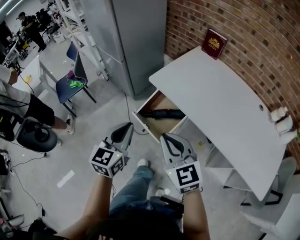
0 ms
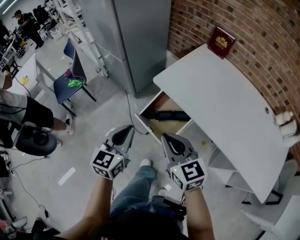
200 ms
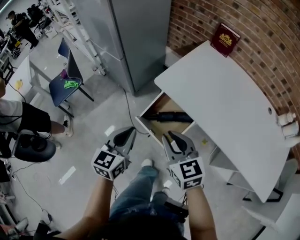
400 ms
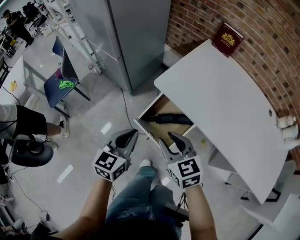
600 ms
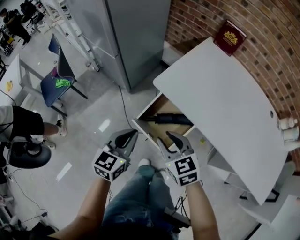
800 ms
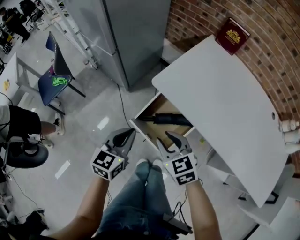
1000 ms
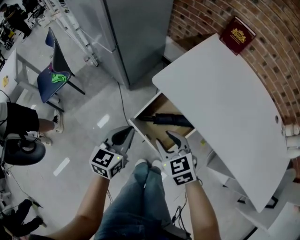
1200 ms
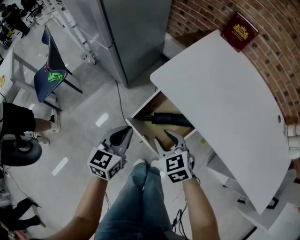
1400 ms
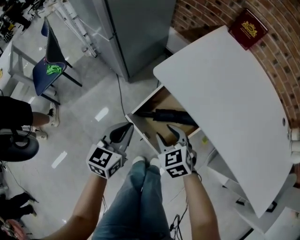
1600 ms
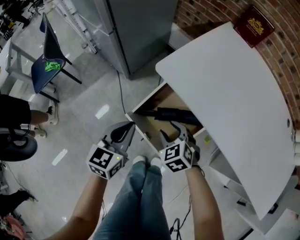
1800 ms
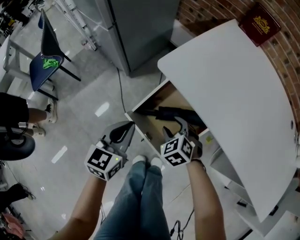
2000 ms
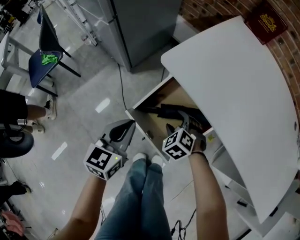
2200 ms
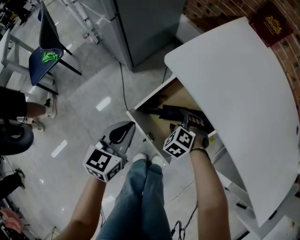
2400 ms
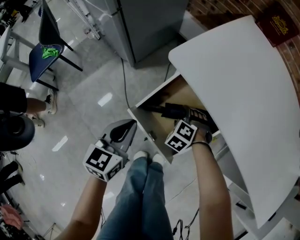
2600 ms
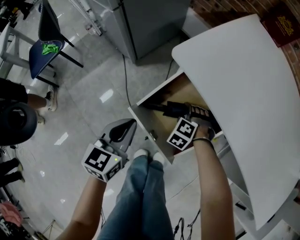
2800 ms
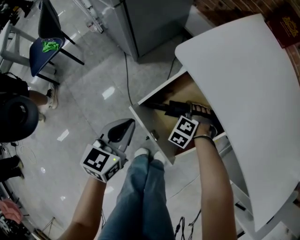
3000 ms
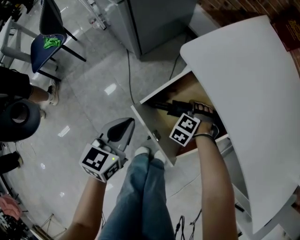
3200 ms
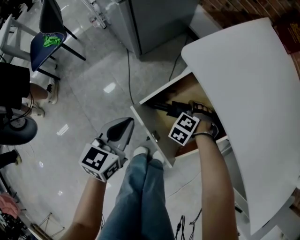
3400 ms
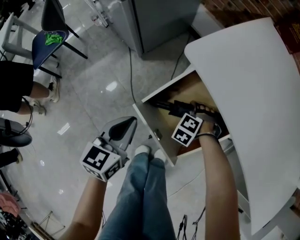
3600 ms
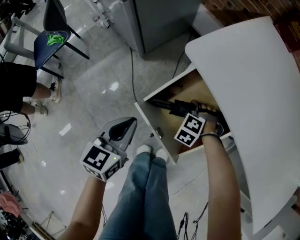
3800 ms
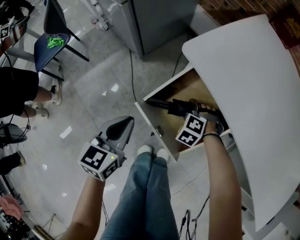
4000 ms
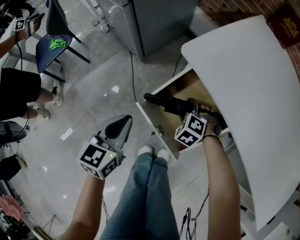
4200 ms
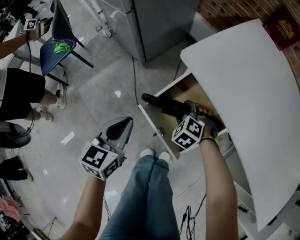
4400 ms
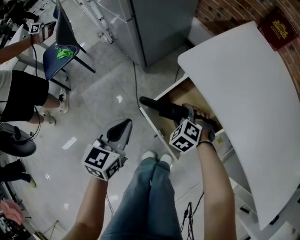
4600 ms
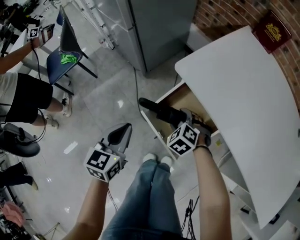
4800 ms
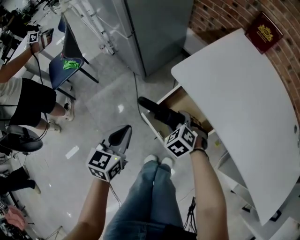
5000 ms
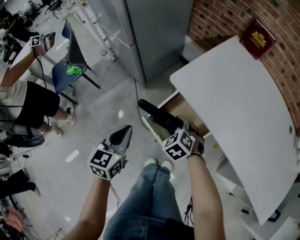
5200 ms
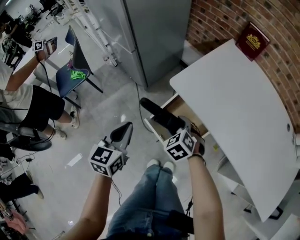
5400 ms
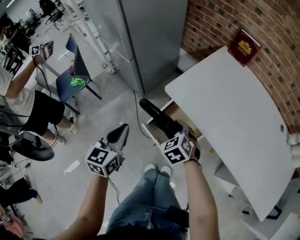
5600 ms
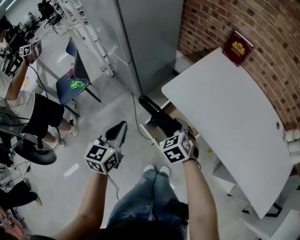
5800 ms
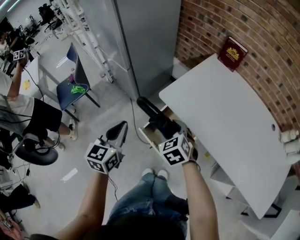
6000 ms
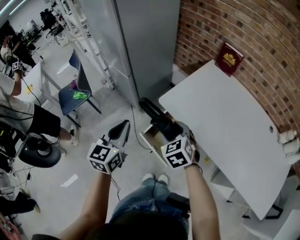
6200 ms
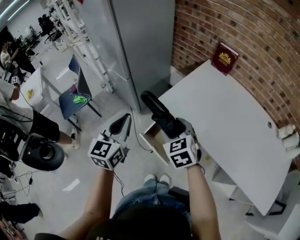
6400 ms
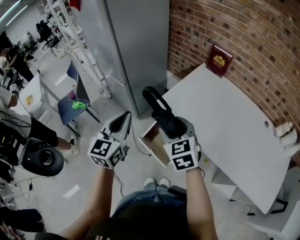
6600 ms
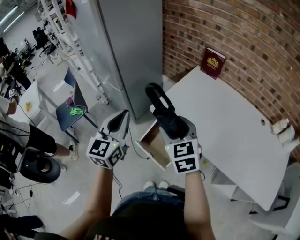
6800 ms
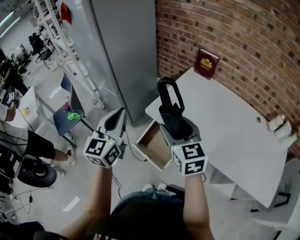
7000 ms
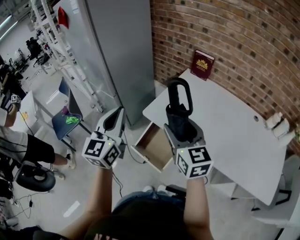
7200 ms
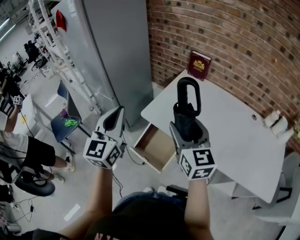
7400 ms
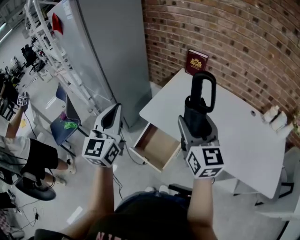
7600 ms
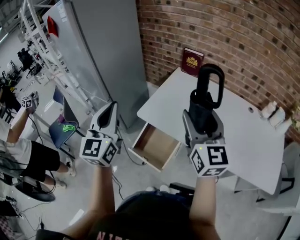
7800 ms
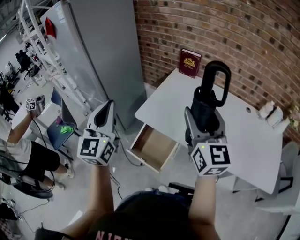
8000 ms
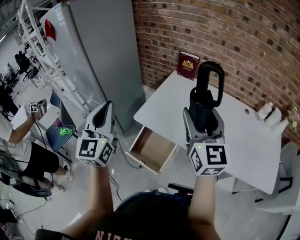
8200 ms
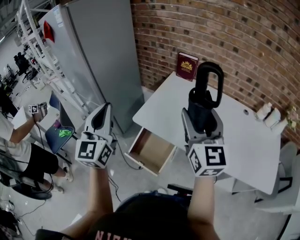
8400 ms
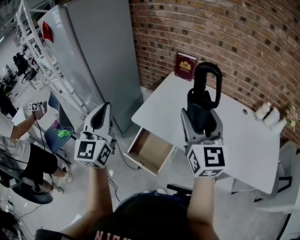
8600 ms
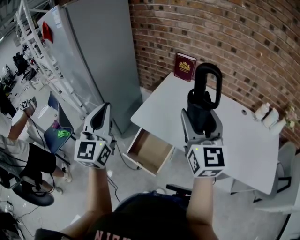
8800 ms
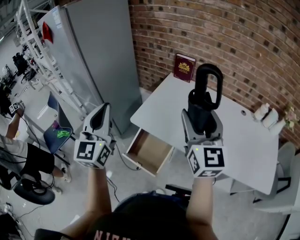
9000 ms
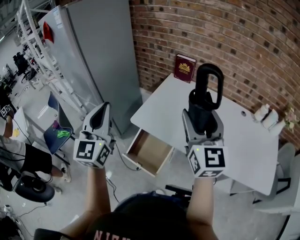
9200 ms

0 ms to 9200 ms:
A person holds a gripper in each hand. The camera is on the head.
0 ms to 1600 ms: The grippers both shift downward and forward by some 35 cm. The right gripper changes its angle by about 30 degrees, and opens its fingers.
1600 ms to 3000 ms: The left gripper is displaced downward by approximately 10 cm, while the right gripper shifts roughly 25 cm downward and forward, changes its angle by approximately 50 degrees, and opens.
3000 ms to 4600 ms: The left gripper moves upward, some 5 cm; the right gripper shifts approximately 10 cm upward, and turns by some 20 degrees.
4600 ms to 6200 ms: Both grippers move upward, approximately 30 cm. The right gripper rotates about 30 degrees.
6200 ms to 7600 ms: The left gripper travels upward and to the right by about 20 cm, and swivels some 20 degrees, while the right gripper heads upward and to the right, covering about 30 cm, and tilts its fingers approximately 40 degrees upward.
7600 ms to 9200 ms: The right gripper heads upward, covering about 5 cm.

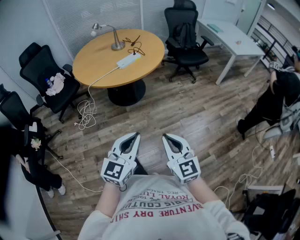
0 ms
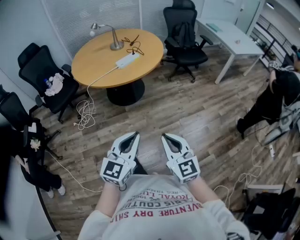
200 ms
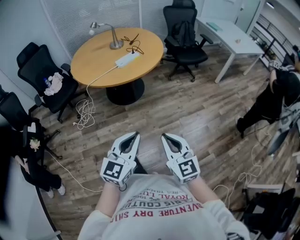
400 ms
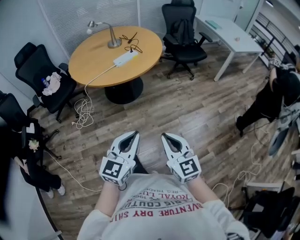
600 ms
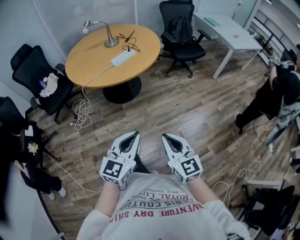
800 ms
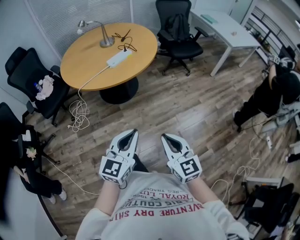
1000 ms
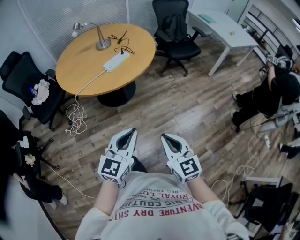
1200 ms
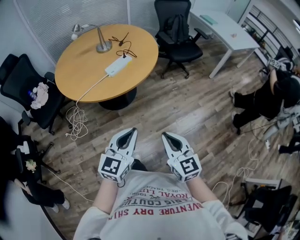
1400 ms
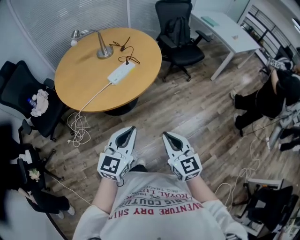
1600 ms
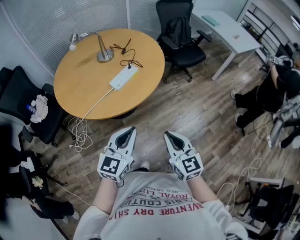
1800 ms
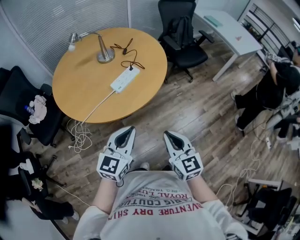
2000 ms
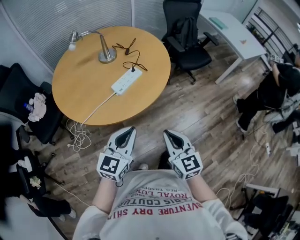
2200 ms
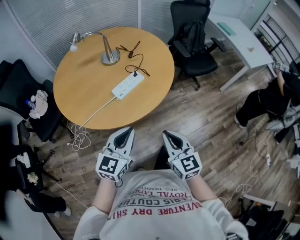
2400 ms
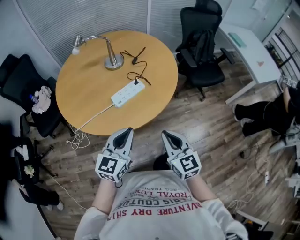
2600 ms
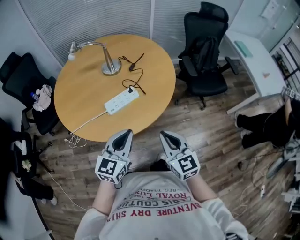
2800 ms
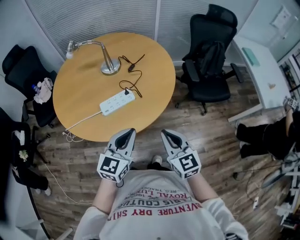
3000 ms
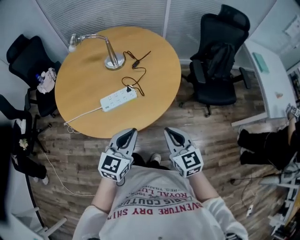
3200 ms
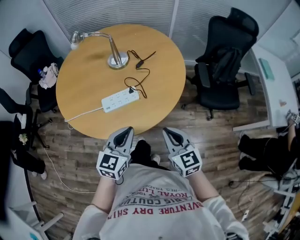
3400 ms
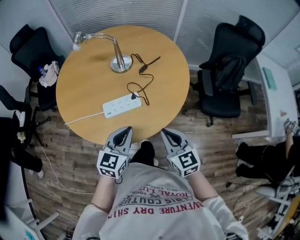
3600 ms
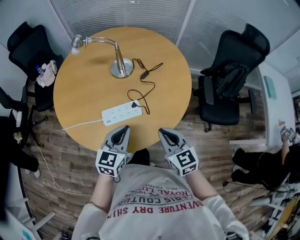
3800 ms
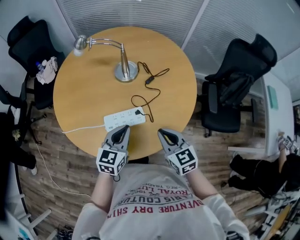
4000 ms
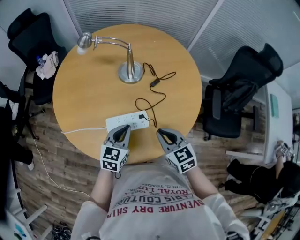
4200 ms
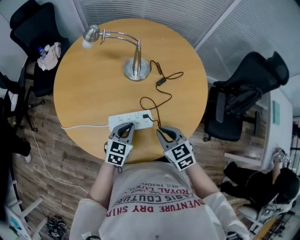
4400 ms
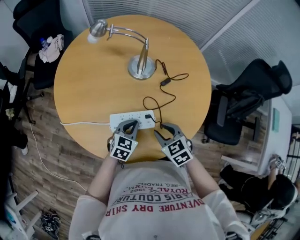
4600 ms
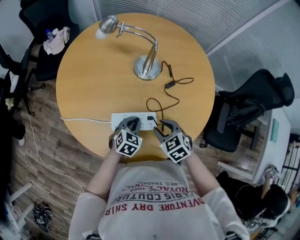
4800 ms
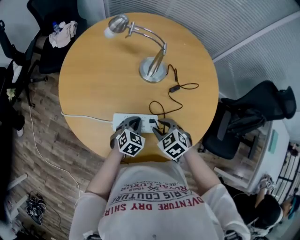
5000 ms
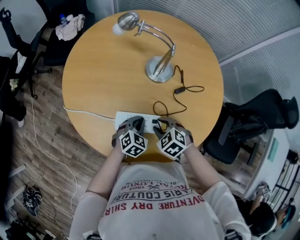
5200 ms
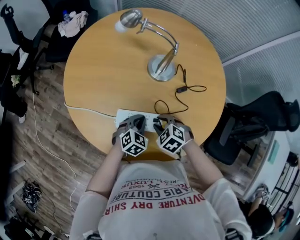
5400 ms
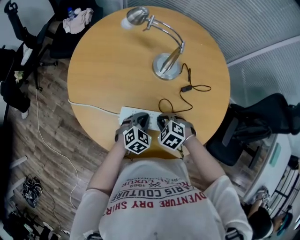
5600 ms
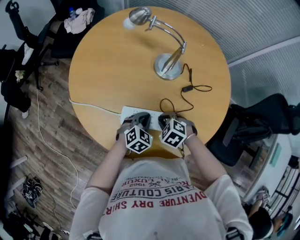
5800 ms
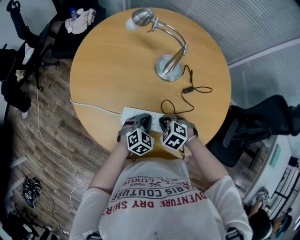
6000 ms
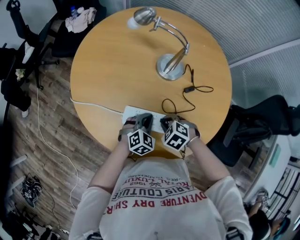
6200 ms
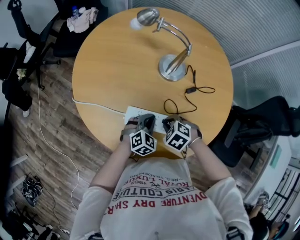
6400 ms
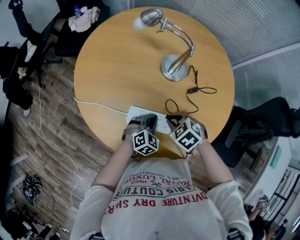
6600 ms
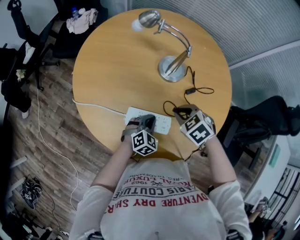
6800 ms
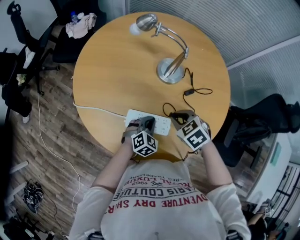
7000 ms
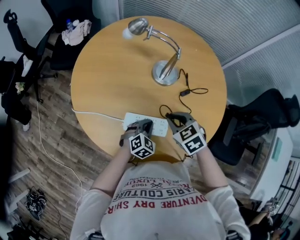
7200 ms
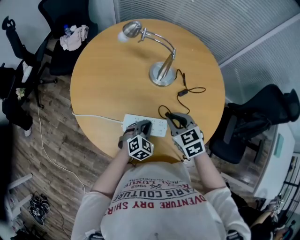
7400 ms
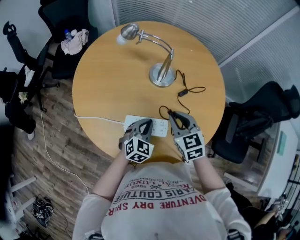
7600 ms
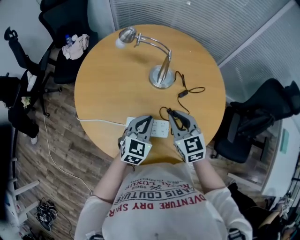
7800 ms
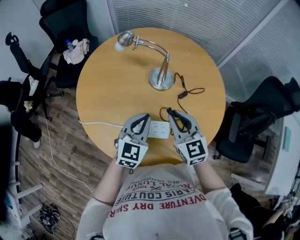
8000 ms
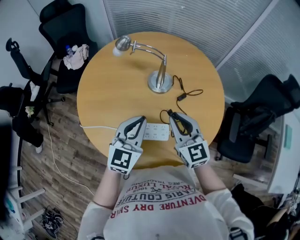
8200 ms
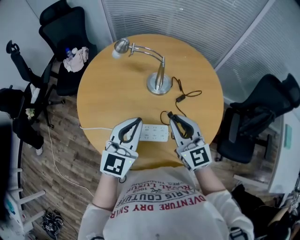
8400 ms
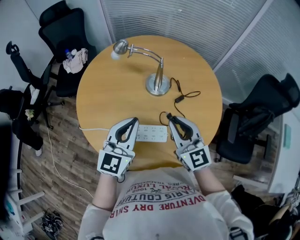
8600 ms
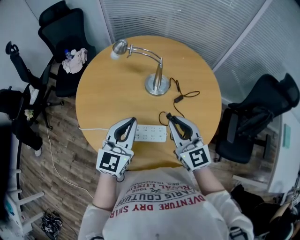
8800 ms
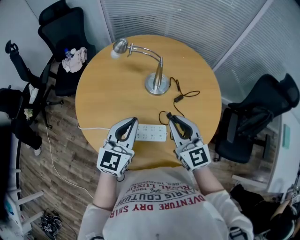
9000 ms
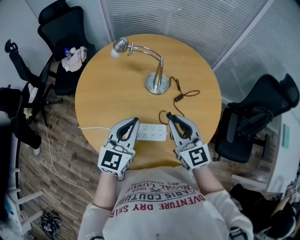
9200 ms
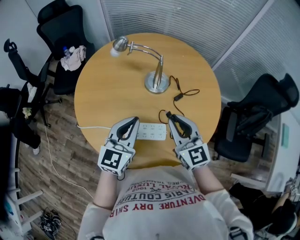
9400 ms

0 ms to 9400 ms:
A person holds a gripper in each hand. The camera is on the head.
0 ms to 1600 ms: Both grippers travel together forward, some 25 cm.
1600 ms to 3200 ms: The right gripper shifts by approximately 40 cm, and turns by some 30 degrees; the left gripper shifts by roughly 35 cm, and rotates some 30 degrees.
3200 ms to 4800 ms: Both grippers travel together forward and downward, some 30 cm. The left gripper rotates roughly 30 degrees; the right gripper angles its fingers downward, by roughly 30 degrees, and opens its fingers.
4800 ms to 6200 ms: The right gripper moves downward, about 5 cm, changes its angle by about 40 degrees, and closes its fingers.
6200 ms to 7800 ms: The grippers both shift upward by approximately 15 cm. The right gripper tips its fingers upward by roughly 50 degrees. The left gripper changes its angle by about 20 degrees.
7800 ms to 9400 ms: The left gripper travels upward by some 10 cm. The right gripper is displaced upward by roughly 5 cm.

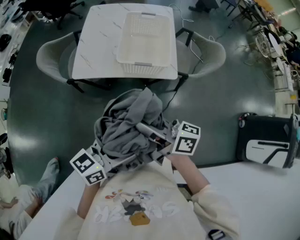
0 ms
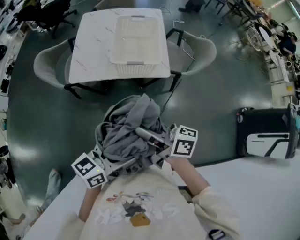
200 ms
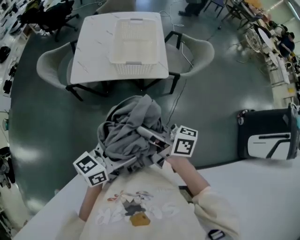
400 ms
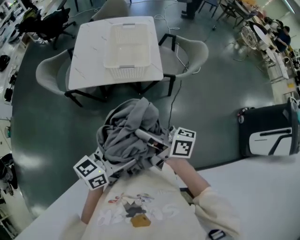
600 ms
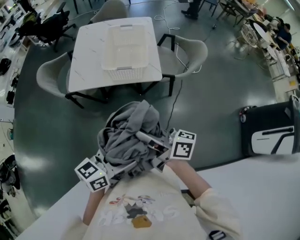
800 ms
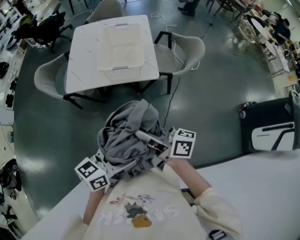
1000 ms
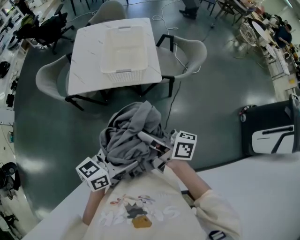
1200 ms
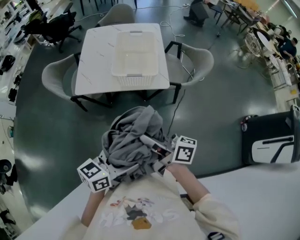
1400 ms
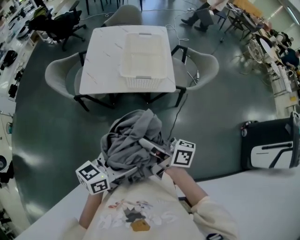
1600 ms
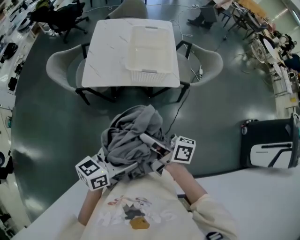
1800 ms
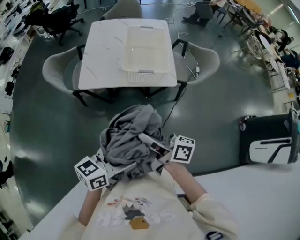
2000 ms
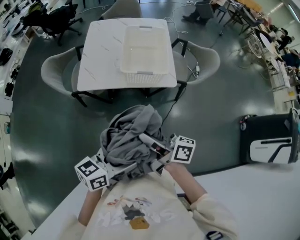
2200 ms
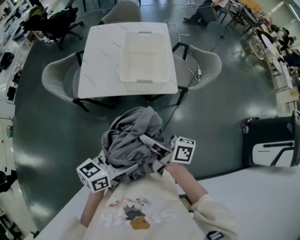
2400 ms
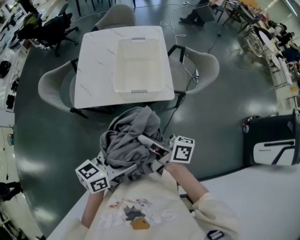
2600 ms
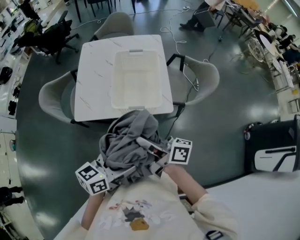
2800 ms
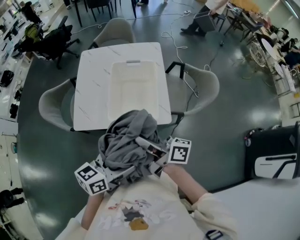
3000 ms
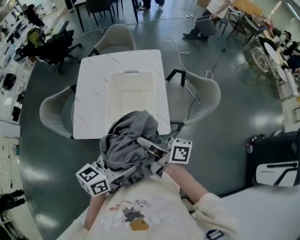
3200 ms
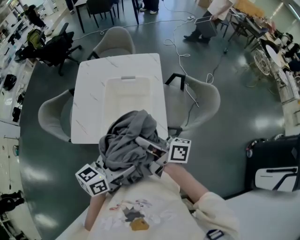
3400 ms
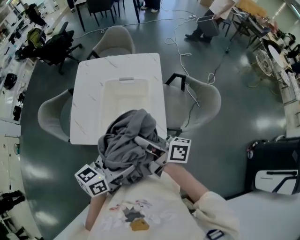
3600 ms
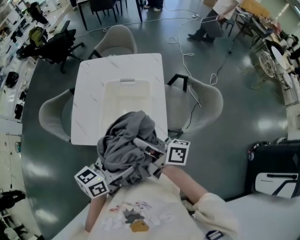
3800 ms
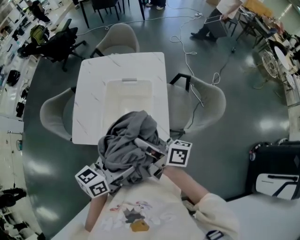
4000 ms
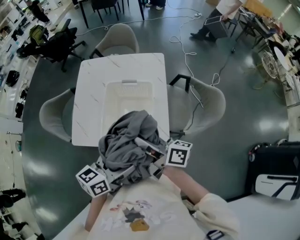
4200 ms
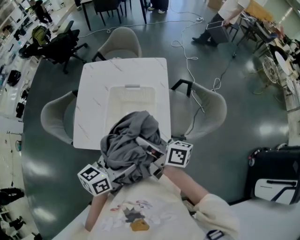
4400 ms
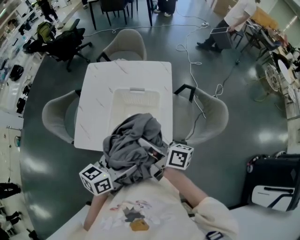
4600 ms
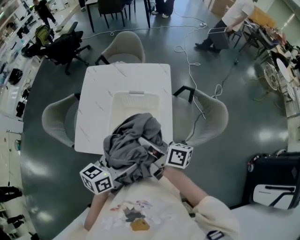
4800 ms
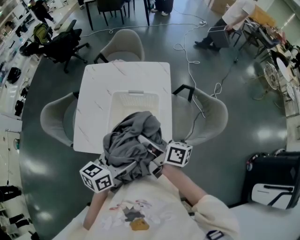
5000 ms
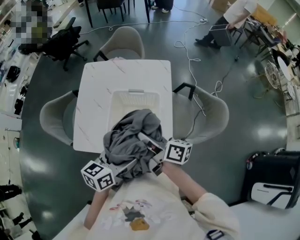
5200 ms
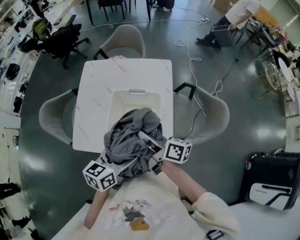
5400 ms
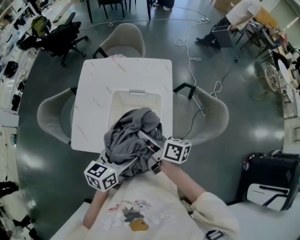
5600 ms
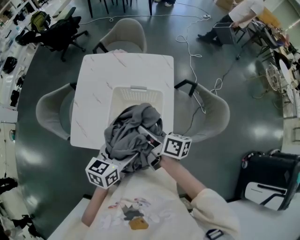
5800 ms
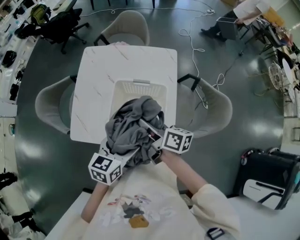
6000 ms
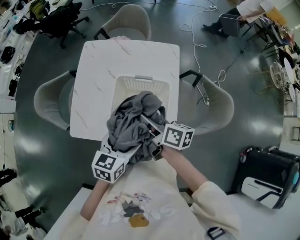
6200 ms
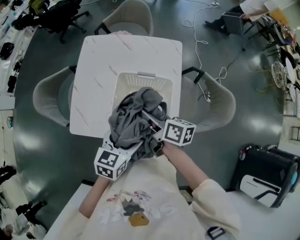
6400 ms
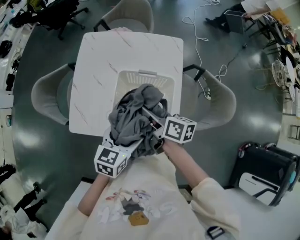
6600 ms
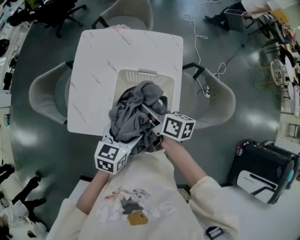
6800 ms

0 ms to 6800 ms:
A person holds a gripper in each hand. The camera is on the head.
0 ms to 1400 ms: The grippers both shift backward by about 5 cm.
1400 ms to 2800 ms: Both grippers move forward, approximately 15 cm.
2800 ms to 4000 ms: Both grippers move forward and to the right, about 20 cm.
4000 ms to 5400 ms: The left gripper moves forward, some 10 cm; the right gripper goes roughly 10 cm forward and downward.
5400 ms to 6800 ms: Both grippers travel together downward and forward, roughly 10 cm.
